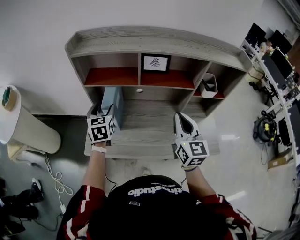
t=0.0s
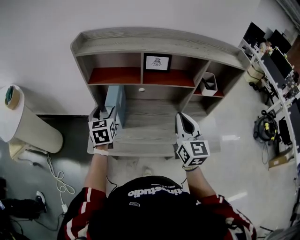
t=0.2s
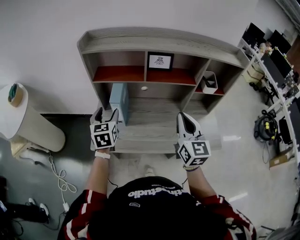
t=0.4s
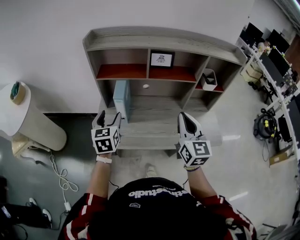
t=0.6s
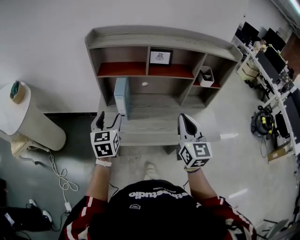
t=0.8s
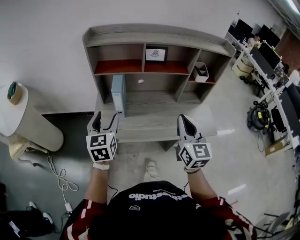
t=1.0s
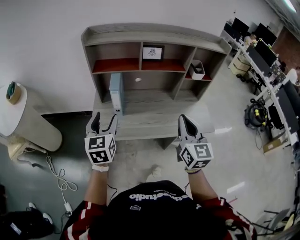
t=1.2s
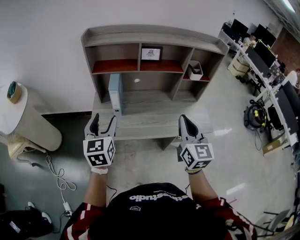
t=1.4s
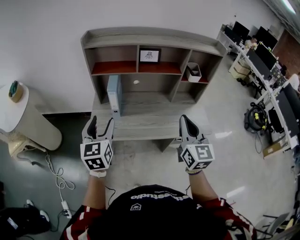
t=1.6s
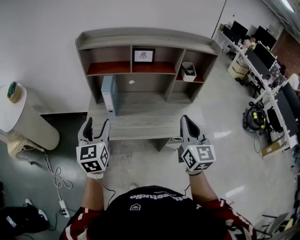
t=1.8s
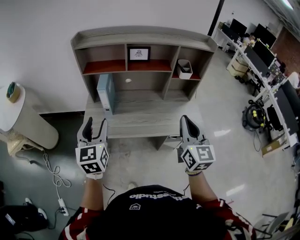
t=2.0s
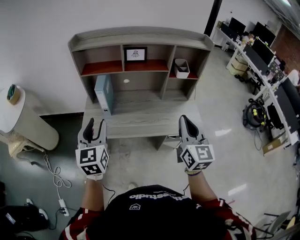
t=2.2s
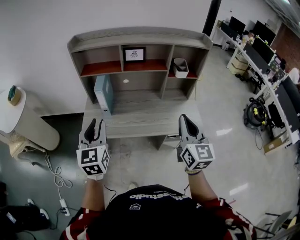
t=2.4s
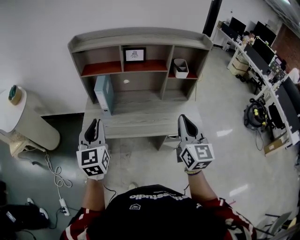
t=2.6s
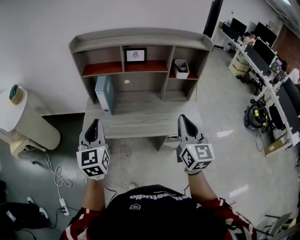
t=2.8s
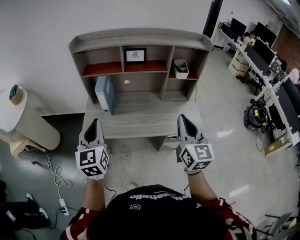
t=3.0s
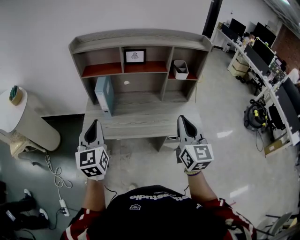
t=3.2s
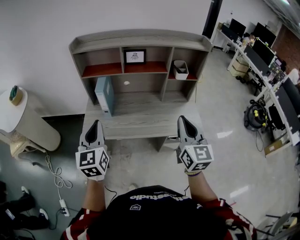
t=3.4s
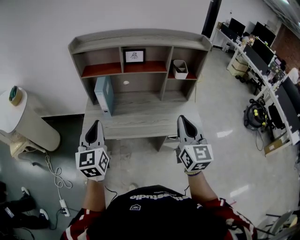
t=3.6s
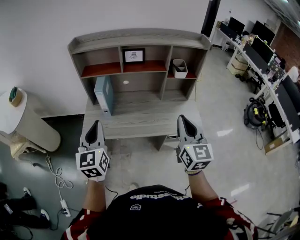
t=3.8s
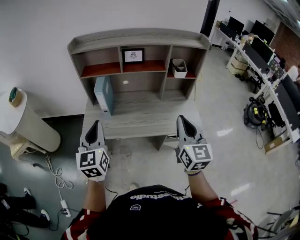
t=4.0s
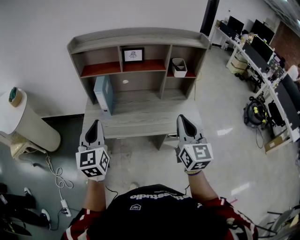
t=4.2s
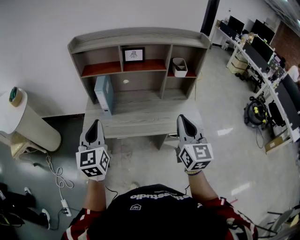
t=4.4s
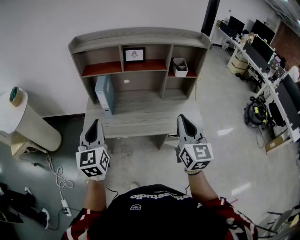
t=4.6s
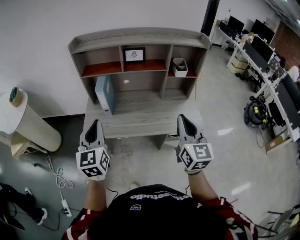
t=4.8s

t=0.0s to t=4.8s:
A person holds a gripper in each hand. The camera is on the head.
t=0.0s to t=1.6s: The right gripper shifts some 20 cm backward. Meanwhile the left gripper moves backward and upward, about 30 cm.
t=1.6s to t=3.2s: The right gripper goes roughly 10 cm to the right. Meanwhile the left gripper heads to the right and backward, covering about 10 cm, and closes.
t=3.2s to t=4.8s: Neither gripper changes place.

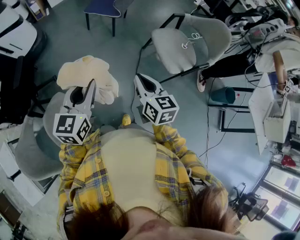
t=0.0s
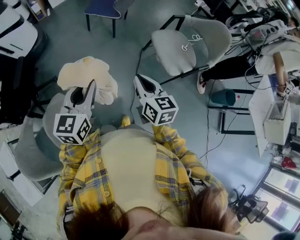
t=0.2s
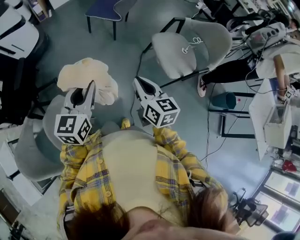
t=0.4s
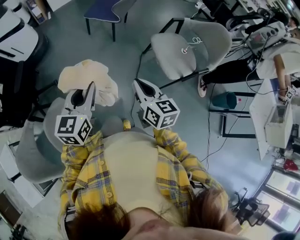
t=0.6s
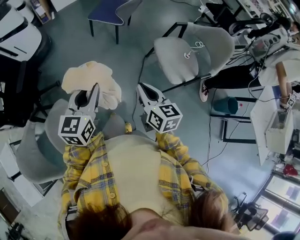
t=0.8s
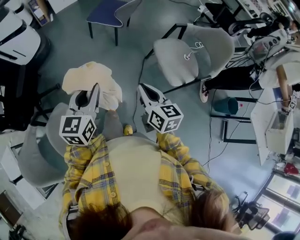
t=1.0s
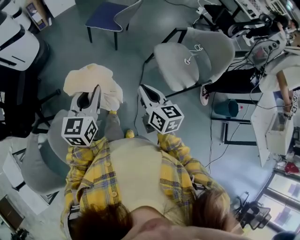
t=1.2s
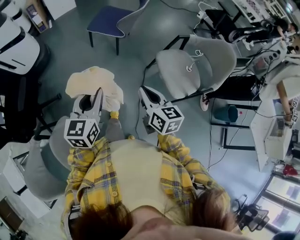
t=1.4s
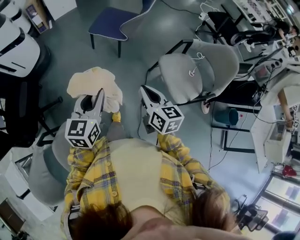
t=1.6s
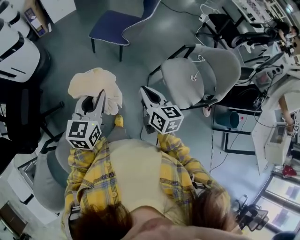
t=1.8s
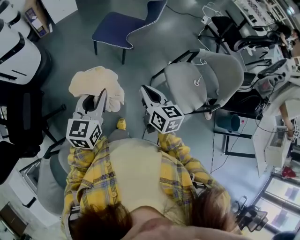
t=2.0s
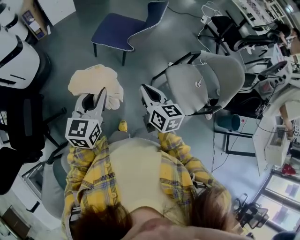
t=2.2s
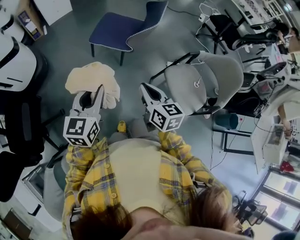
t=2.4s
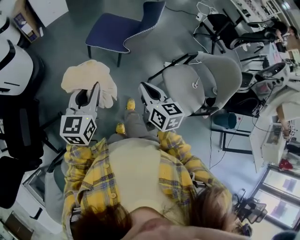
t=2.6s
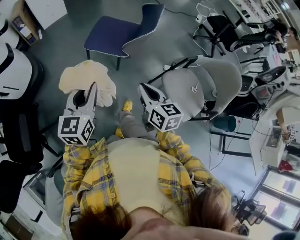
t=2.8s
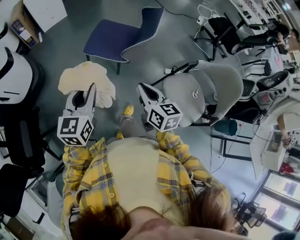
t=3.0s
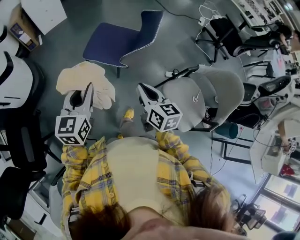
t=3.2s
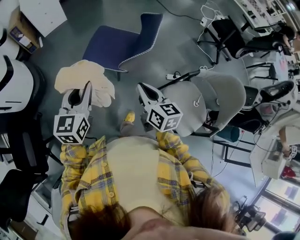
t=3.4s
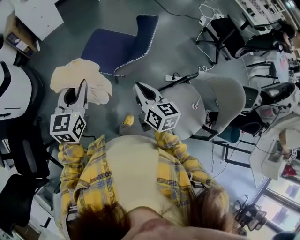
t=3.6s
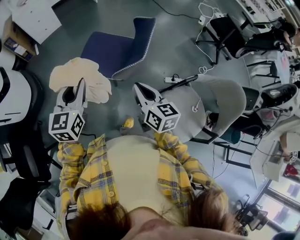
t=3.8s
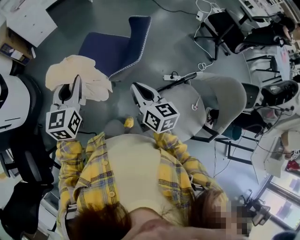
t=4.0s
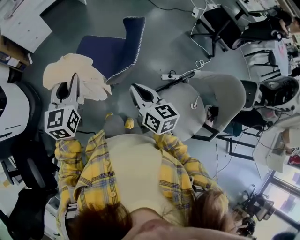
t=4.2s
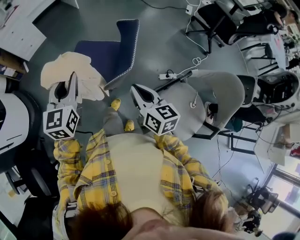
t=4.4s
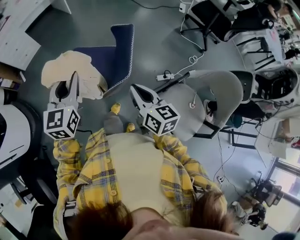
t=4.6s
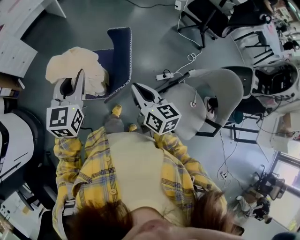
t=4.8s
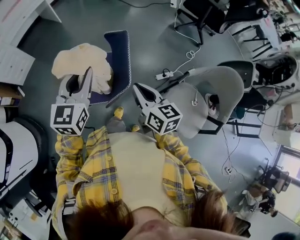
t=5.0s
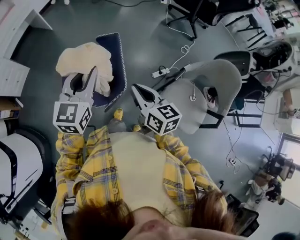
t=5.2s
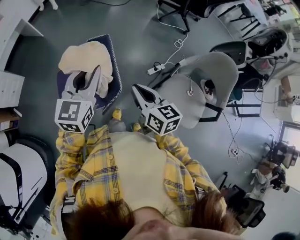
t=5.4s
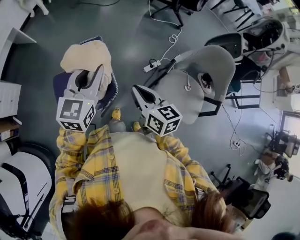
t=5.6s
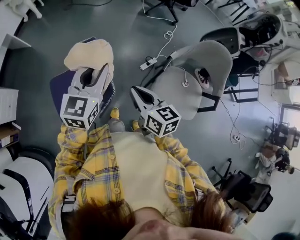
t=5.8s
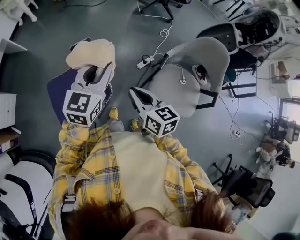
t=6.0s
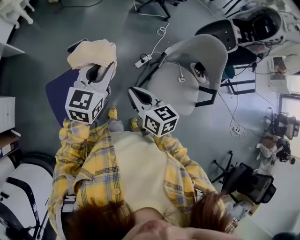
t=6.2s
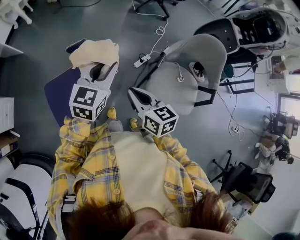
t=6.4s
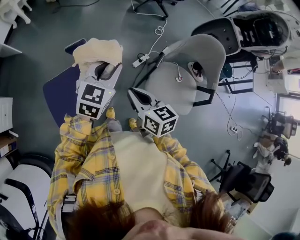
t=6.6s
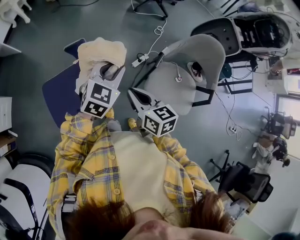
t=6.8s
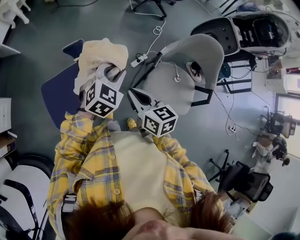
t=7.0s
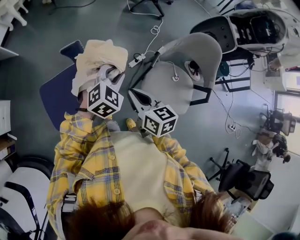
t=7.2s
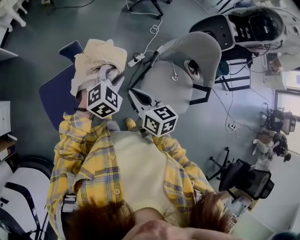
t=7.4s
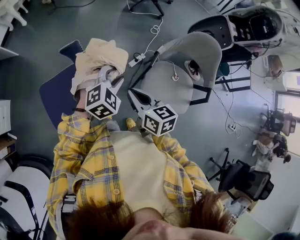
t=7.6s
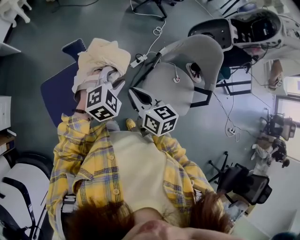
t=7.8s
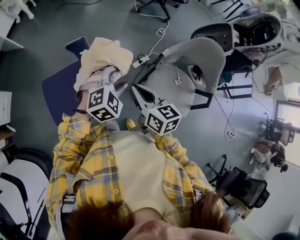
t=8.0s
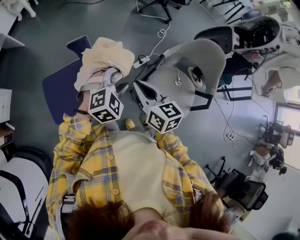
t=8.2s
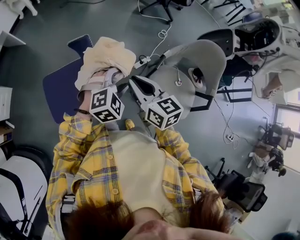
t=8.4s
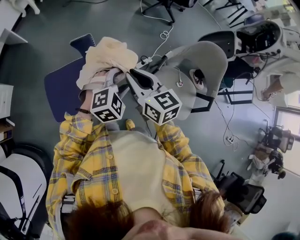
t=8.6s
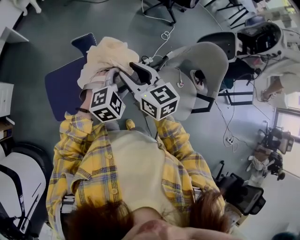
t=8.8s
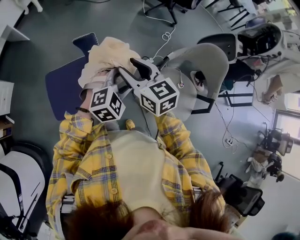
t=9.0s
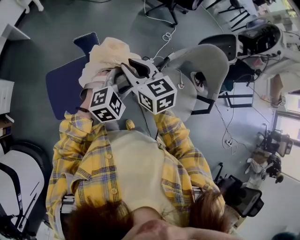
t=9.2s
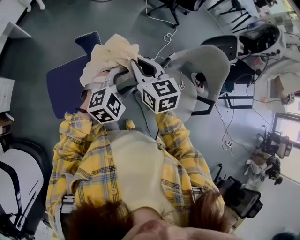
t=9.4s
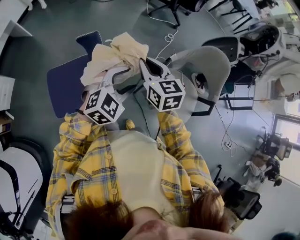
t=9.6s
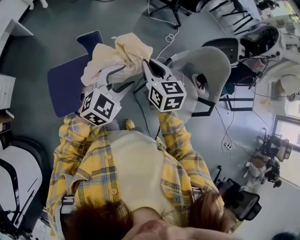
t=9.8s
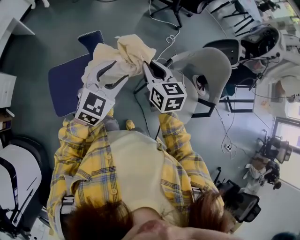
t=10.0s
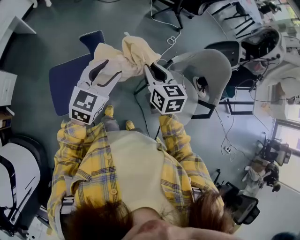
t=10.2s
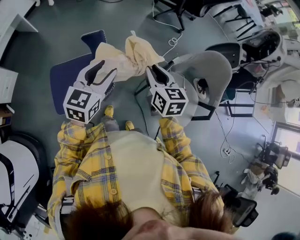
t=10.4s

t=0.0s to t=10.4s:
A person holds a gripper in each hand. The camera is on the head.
t=0.0s to t=1.4s: Both grippers travel together forward, approximately 10 cm.
t=1.4s to t=3.0s: The two grippers go some 30 cm forward.
t=3.0s to t=4.4s: The left gripper moves forward, about 30 cm, while the right gripper heads forward and to the right, covering roughly 20 cm.
t=4.4s to t=6.0s: The right gripper shifts by approximately 10 cm, and changes its angle by roughly 30 degrees; the left gripper moves roughly 30 cm, and rotates some 50 degrees.
t=6.0s to t=7.4s: The left gripper shifts about 15 cm downward and to the right, and swivels some 40 degrees.
t=7.4s to t=9.0s: The right gripper moves to the left, upward and forward, some 10 cm, rotates about 30 degrees, and opens its fingers.
t=9.0s to t=10.4s: The left gripper is displaced to the left and upward by roughly 10 cm, and rolls counterclockwise, seen from behind, by approximately 40 degrees. Meanwhile the right gripper is displaced to the right by some 10 cm, and closes its fingers.

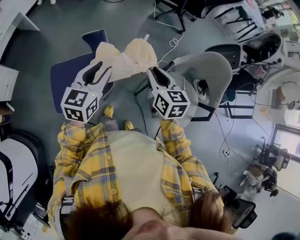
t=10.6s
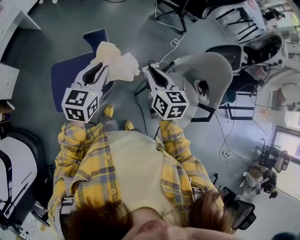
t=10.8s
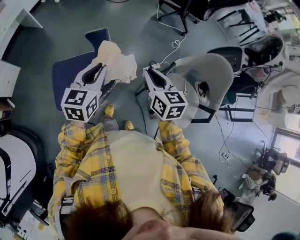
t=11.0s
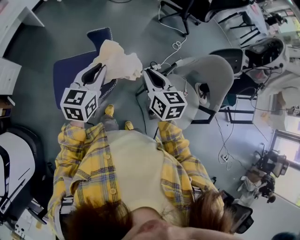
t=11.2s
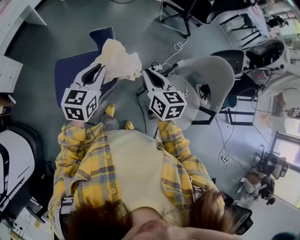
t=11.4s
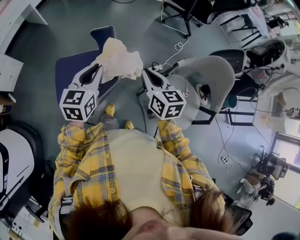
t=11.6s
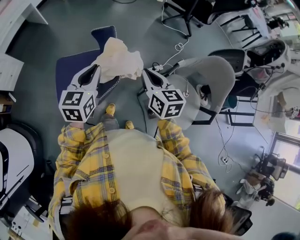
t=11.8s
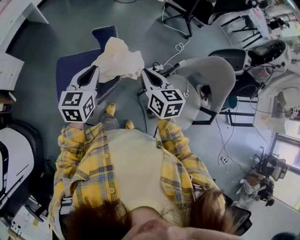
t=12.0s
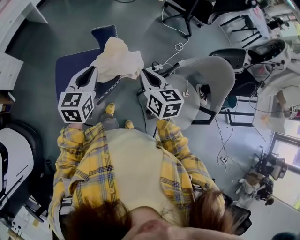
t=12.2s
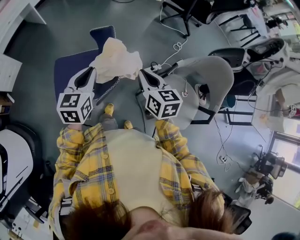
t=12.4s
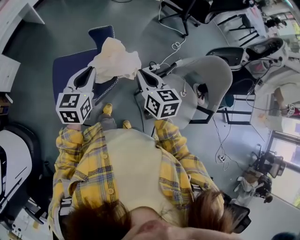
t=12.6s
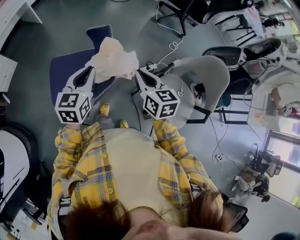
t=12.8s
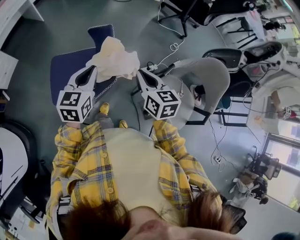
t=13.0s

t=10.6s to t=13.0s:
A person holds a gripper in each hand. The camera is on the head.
t=10.6s to t=11.8s: Both grippers move to the left, about 5 cm. The left gripper closes.
t=11.8s to t=13.0s: The grippers make only small movements.

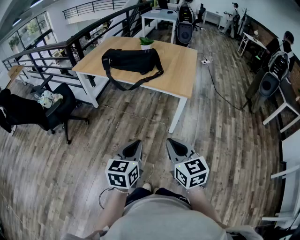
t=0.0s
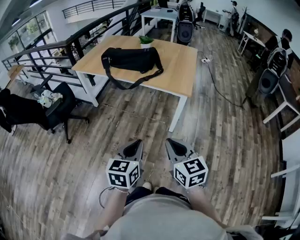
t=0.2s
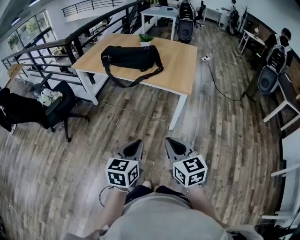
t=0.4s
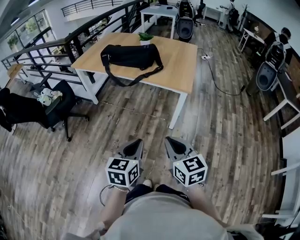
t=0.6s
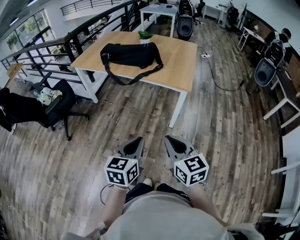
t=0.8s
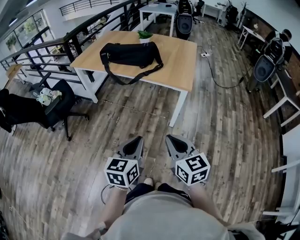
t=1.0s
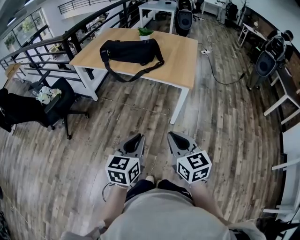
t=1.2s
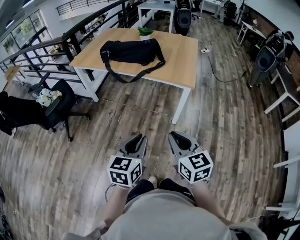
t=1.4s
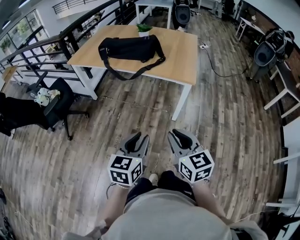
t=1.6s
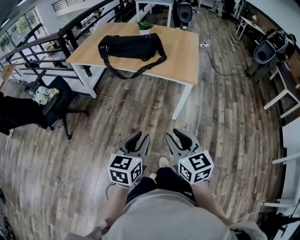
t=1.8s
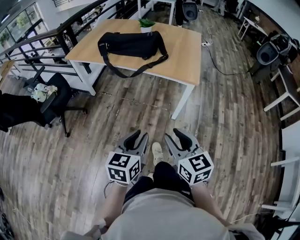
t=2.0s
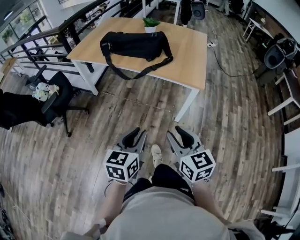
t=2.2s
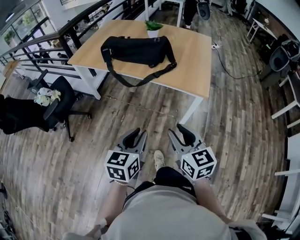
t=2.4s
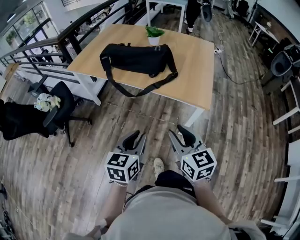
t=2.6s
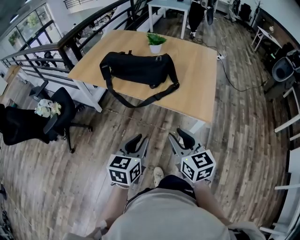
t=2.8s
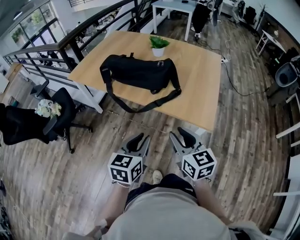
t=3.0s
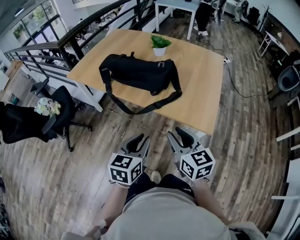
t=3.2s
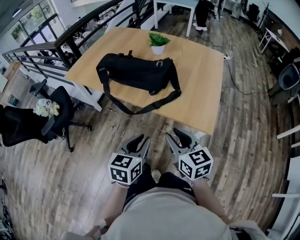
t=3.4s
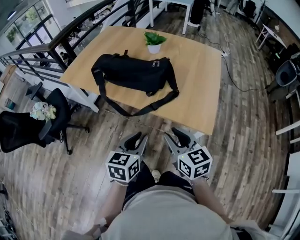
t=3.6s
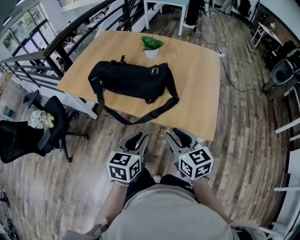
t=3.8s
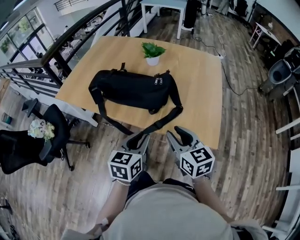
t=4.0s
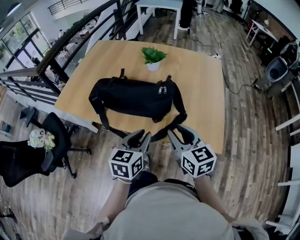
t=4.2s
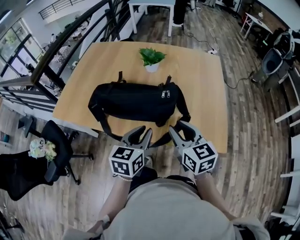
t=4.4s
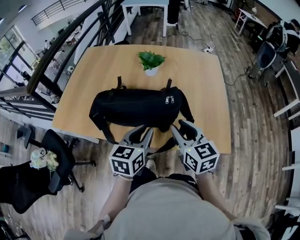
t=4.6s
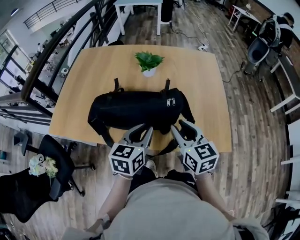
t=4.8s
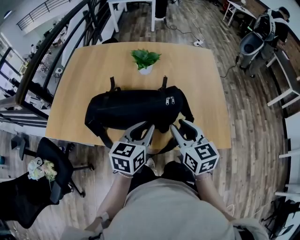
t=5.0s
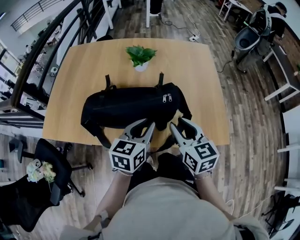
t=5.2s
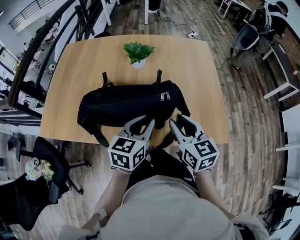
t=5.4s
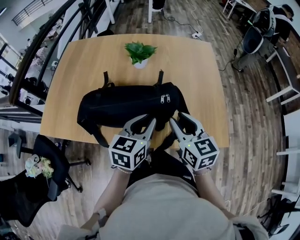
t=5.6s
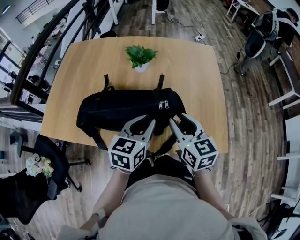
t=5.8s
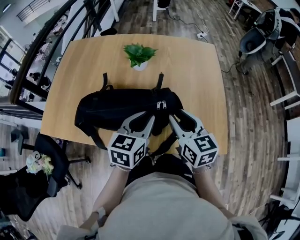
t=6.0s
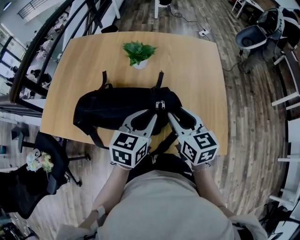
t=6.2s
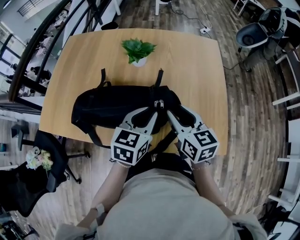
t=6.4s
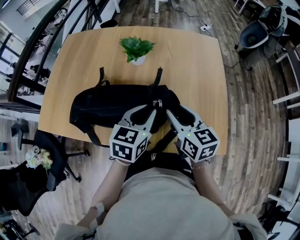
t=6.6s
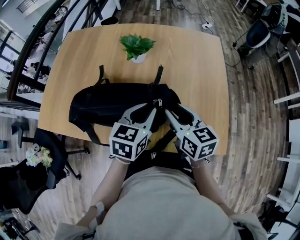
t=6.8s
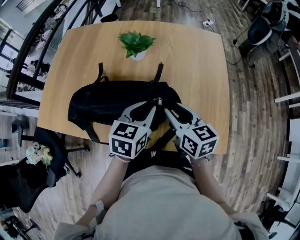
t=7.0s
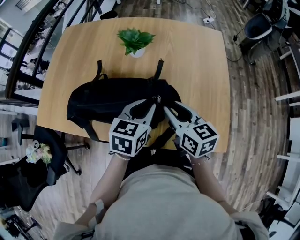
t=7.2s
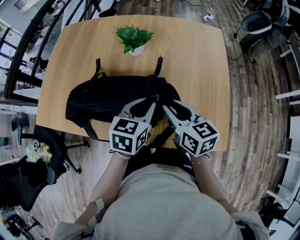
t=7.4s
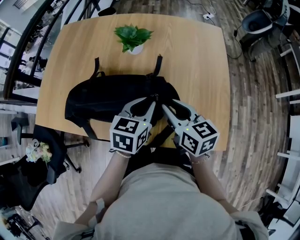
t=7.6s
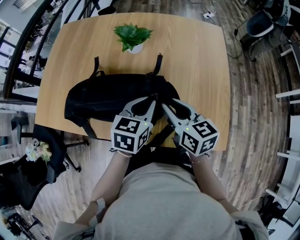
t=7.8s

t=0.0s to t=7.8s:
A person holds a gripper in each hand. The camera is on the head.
t=0.0s to t=1.6s: The grippers stay close to where they were, moving slightly.
t=1.6s to t=3.2s: Both grippers move forward, roughly 35 cm.
t=3.2s to t=4.6s: The two grippers go some 25 cm forward.
t=4.6s to t=6.2s: The right gripper shifts roughly 10 cm forward, while the left gripper is displaced forward and to the right by some 10 cm.
t=6.2s to t=7.8s: The left gripper shifts by about 5 cm.
